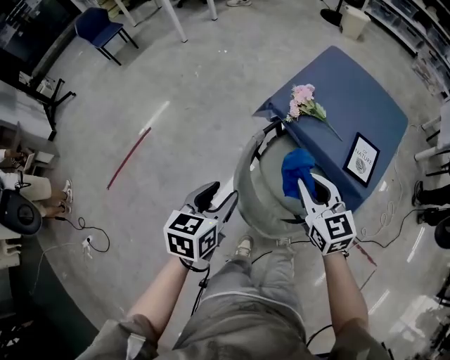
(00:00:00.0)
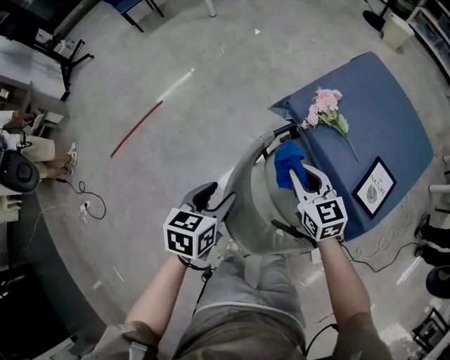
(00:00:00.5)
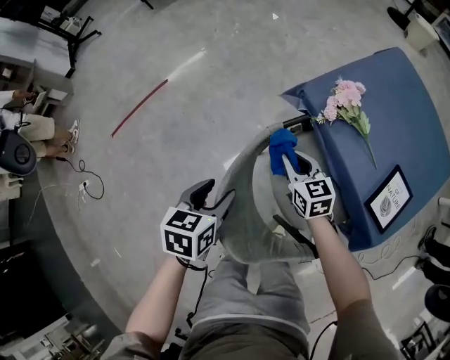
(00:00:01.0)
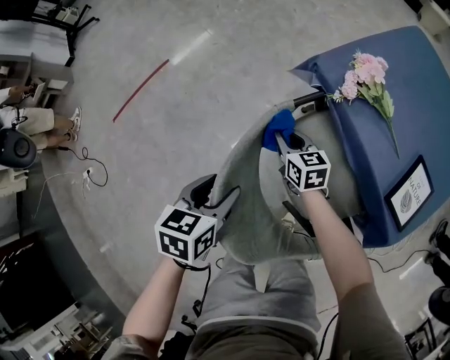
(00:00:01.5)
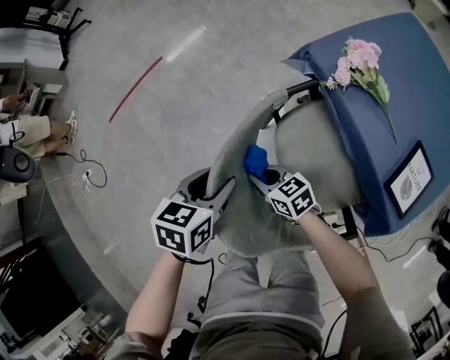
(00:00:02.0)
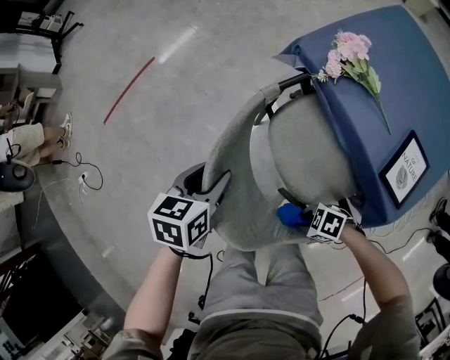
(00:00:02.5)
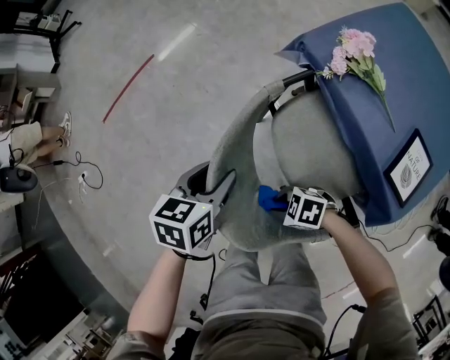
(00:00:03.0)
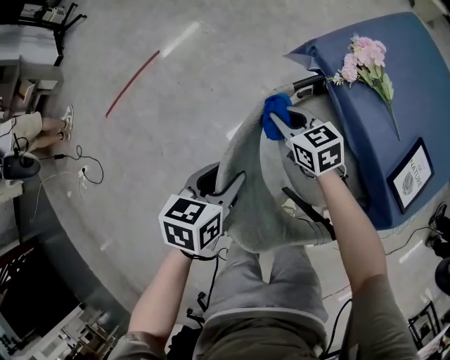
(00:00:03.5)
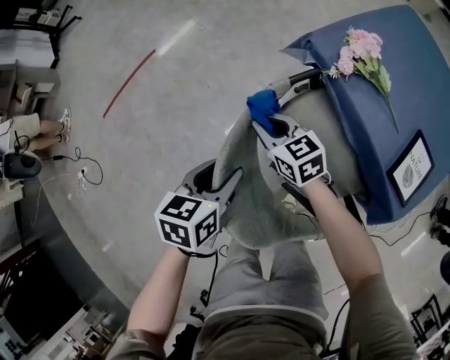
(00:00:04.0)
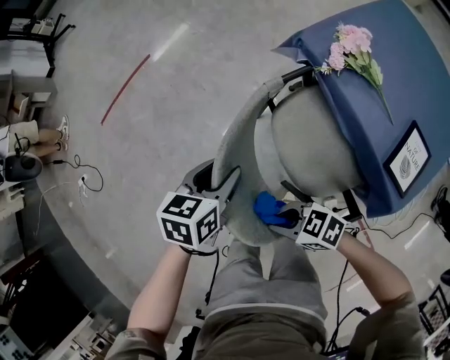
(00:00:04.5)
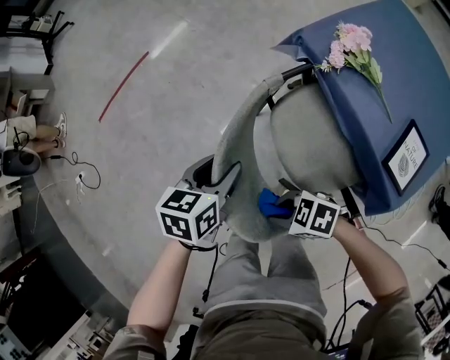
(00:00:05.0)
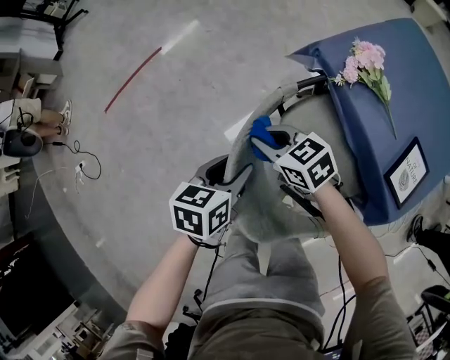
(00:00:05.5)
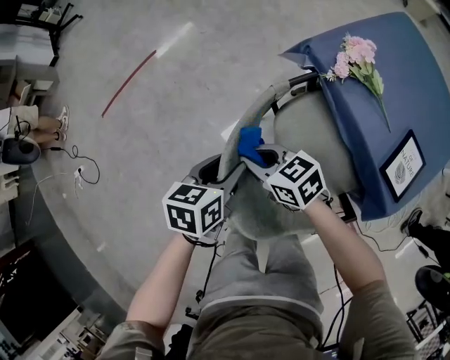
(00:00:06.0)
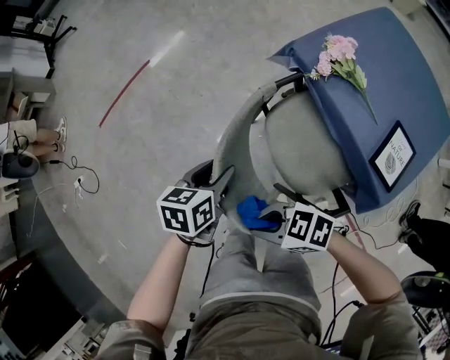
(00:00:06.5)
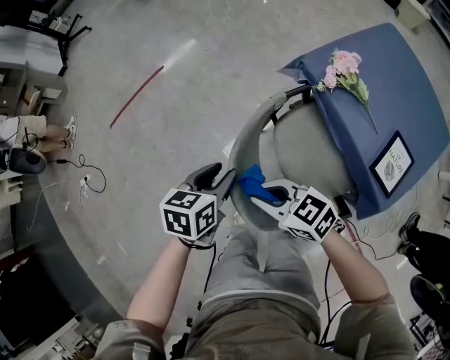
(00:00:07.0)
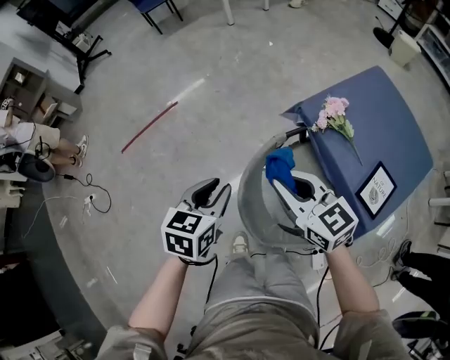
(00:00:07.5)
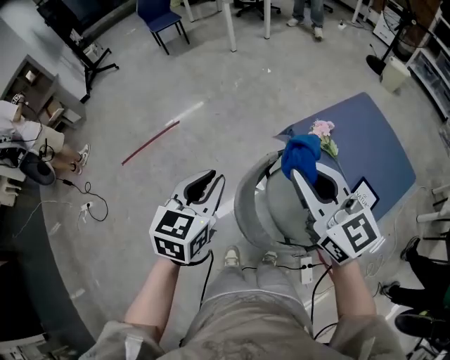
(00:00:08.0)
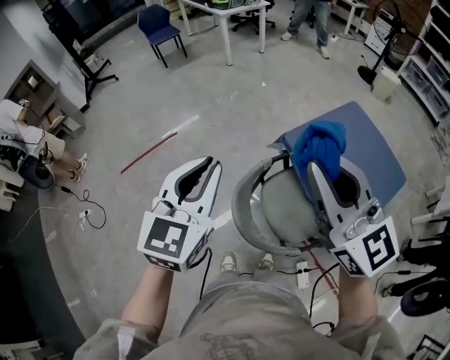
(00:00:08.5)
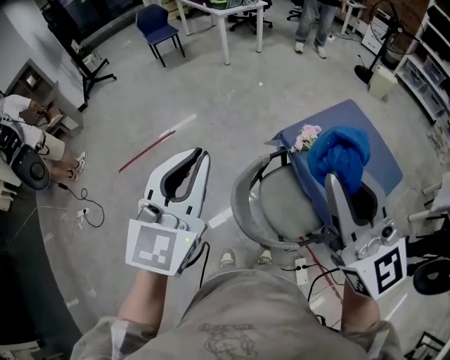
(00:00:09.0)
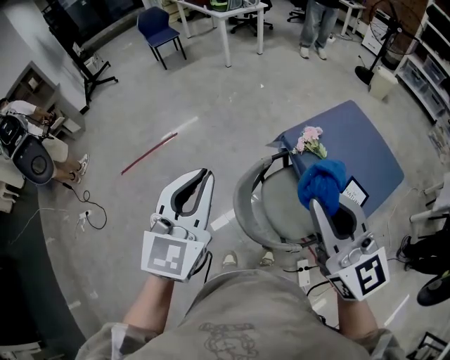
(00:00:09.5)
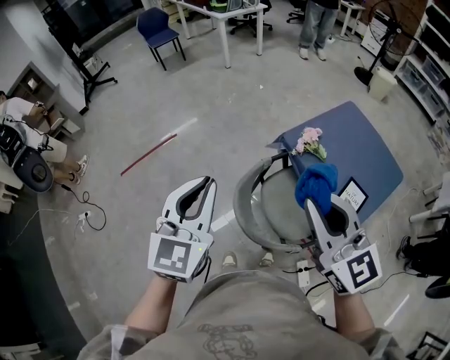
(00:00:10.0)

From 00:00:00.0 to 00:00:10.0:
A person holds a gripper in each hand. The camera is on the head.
From 00:00:00.0 to 00:00:02.0: The right gripper heads downward, covering roughly 35 cm, and changes its angle by some 50 degrees. Meanwhile the left gripper shifts roughly 20 cm downward, and rotates roughly 20 degrees.
From 00:00:06.0 to 00:00:08.0: The grippers both shift upward by some 35 cm. The right gripper turns by about 50 degrees, while the left gripper rotates approximately 30 degrees, and closes.
From 00:00:08.0 to 00:00:10.0: The left gripper moves upward and backward, about 15 cm, and turns by some 20 degrees. The right gripper is displaced backward and upward by about 10 cm.

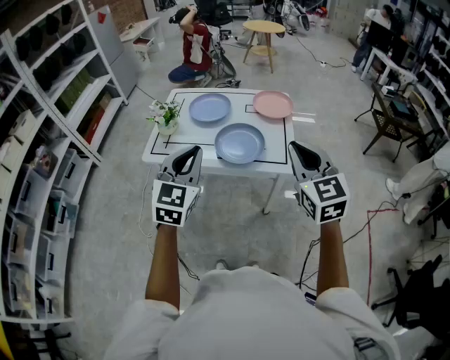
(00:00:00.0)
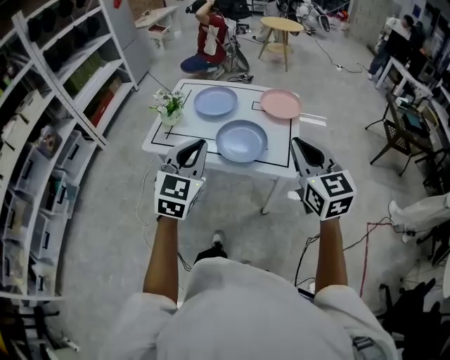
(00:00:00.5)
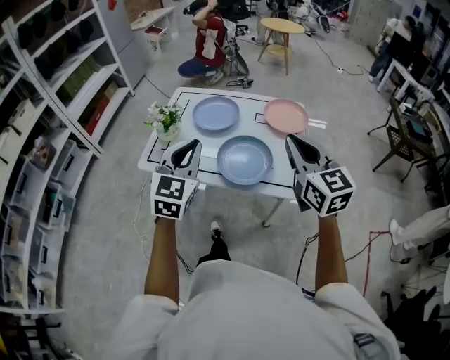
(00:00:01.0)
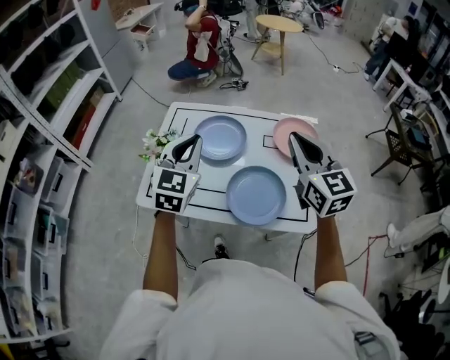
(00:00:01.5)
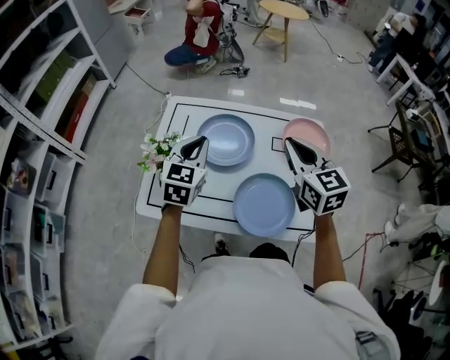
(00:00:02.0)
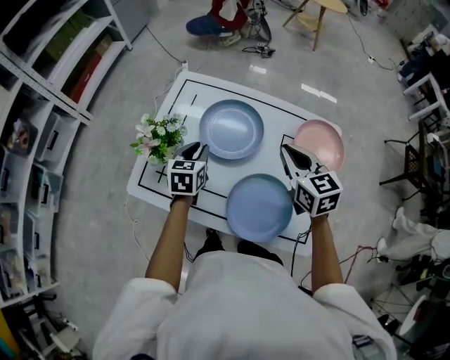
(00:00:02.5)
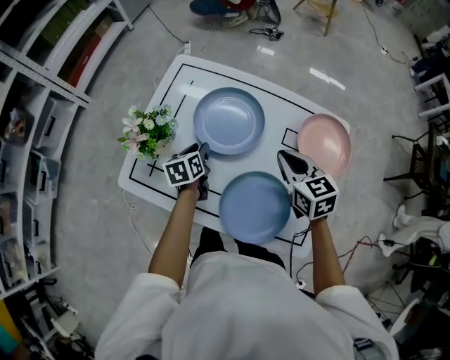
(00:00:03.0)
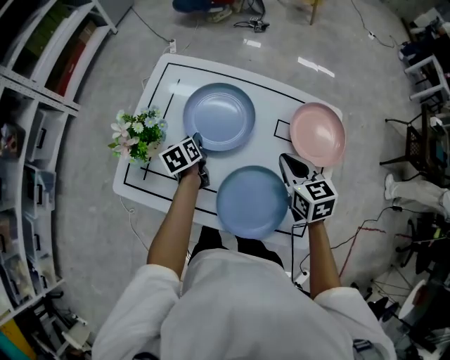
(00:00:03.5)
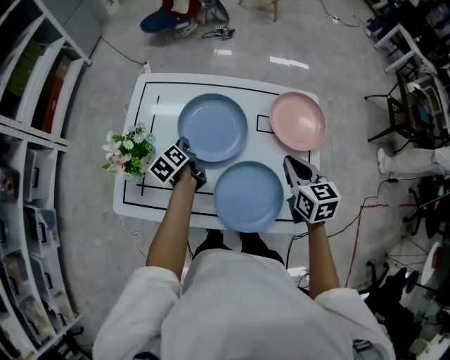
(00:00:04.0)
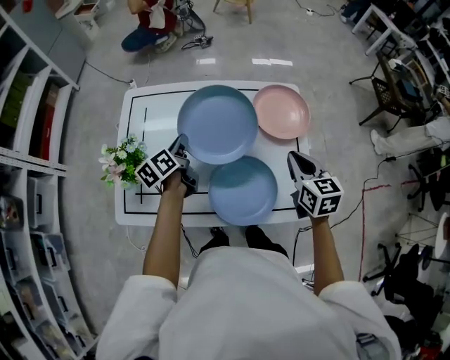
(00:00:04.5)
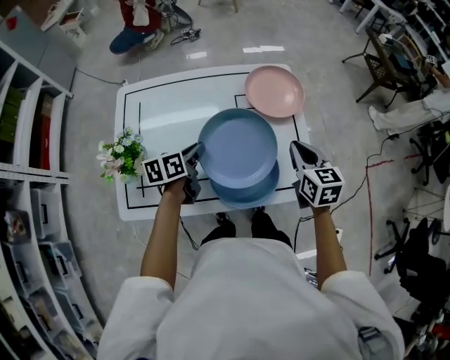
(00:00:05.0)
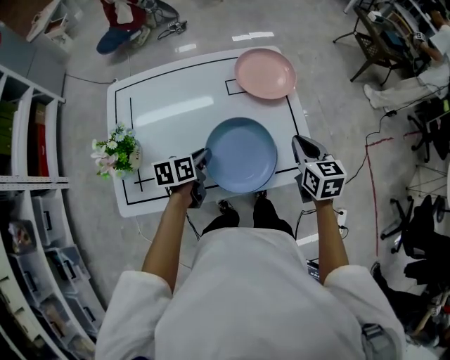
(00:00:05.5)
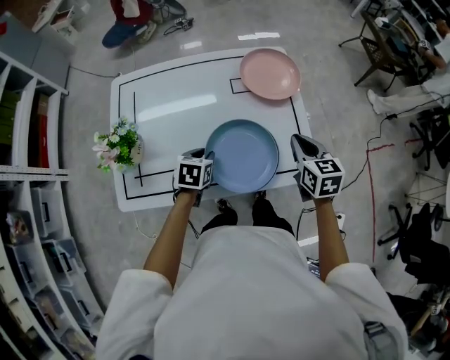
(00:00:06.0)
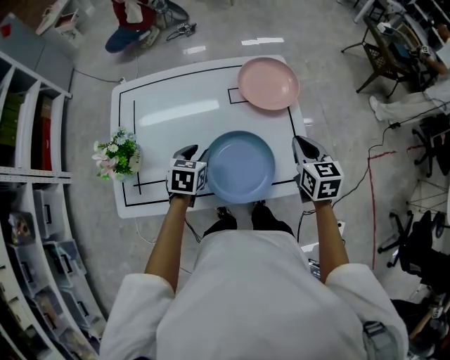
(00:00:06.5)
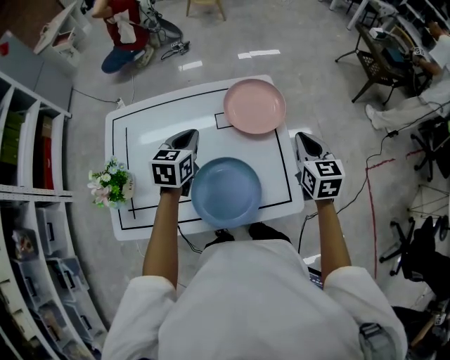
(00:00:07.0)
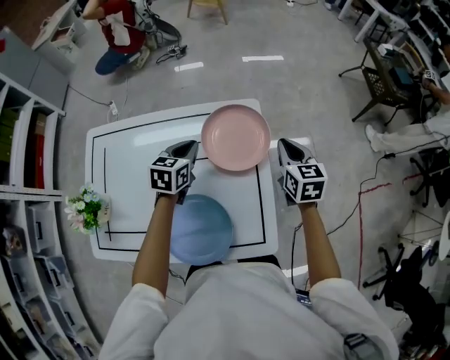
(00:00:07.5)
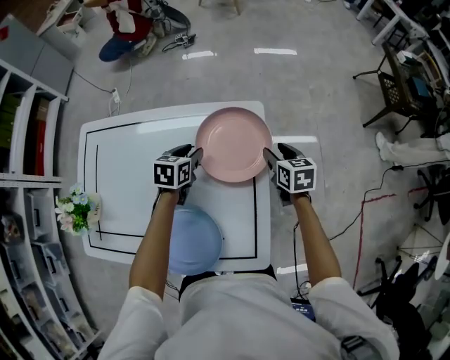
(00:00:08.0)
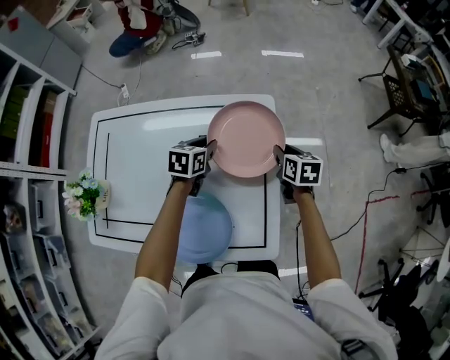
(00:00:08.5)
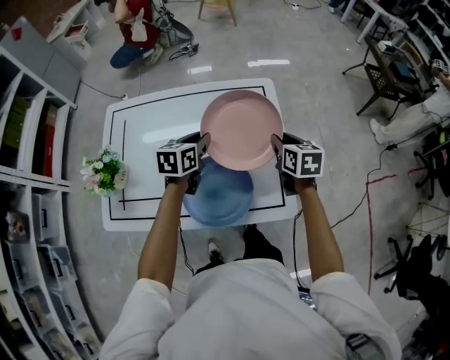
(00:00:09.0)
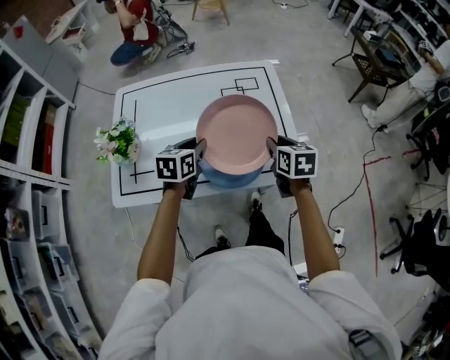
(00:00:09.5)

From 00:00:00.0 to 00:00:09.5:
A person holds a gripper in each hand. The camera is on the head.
From 00:00:00.0 to 00:00:02.0: The two grippers travel together, forward, about 40 cm.
From 00:00:02.0 to 00:00:04.0: The left gripper shifts about 25 cm downward, rotates around the line of its fingers by some 70 degrees, counterclockwise from behind, and opens and closes again; the right gripper shifts some 20 cm downward and to the right, and rotates about 20 degrees.
From 00:00:04.0 to 00:00:05.5: The right gripper changes place by approximately 15 cm; the left gripper shifts by approximately 20 cm, and rotates approximately 50 degrees.
From 00:00:05.5 to 00:00:07.5: The two grippers go roughly 25 cm forward. The left gripper rotates about 30 degrees, and opens, then closes once more.
From 00:00:07.5 to 00:00:09.5: The right gripper shifts roughly 30 cm backward and to the left, and opens, then closes again; the left gripper travels backward by some 30 cm.

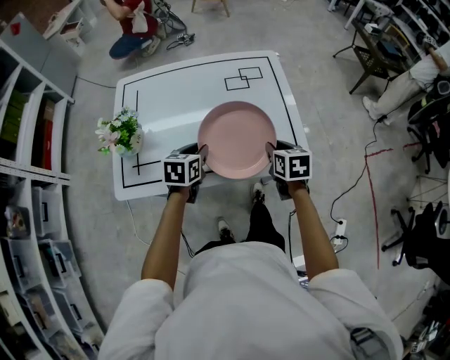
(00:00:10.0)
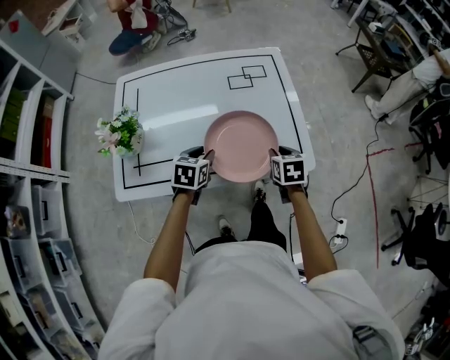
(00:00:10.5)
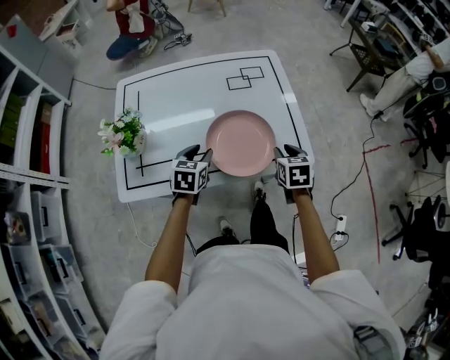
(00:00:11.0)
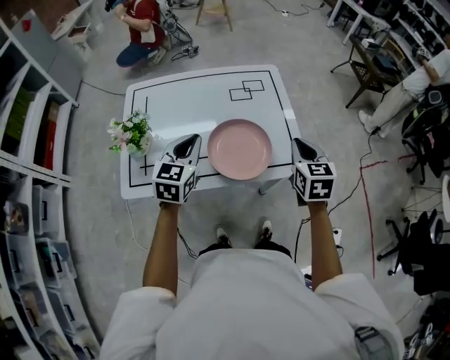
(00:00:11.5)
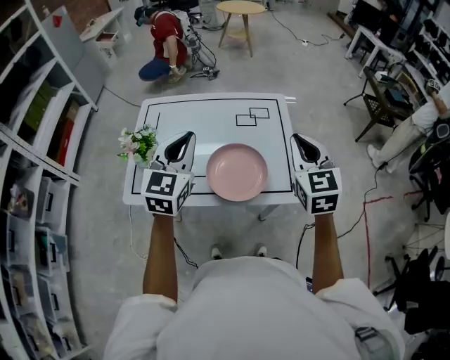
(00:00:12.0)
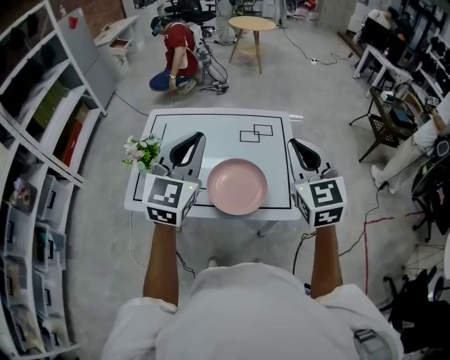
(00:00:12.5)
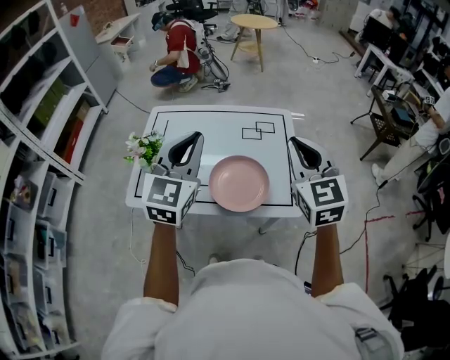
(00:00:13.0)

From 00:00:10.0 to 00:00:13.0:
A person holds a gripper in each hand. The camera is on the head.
From 00:00:10.0 to 00:00:11.5: Both grippers travel together upward, some 15 cm. The left gripper rotates some 30 degrees. Meanwhile the right gripper swivels approximately 20 degrees.
From 00:00:11.5 to 00:00:13.0: The two grippers go some 20 cm upward. The left gripper swivels roughly 20 degrees. The right gripper swivels some 30 degrees.

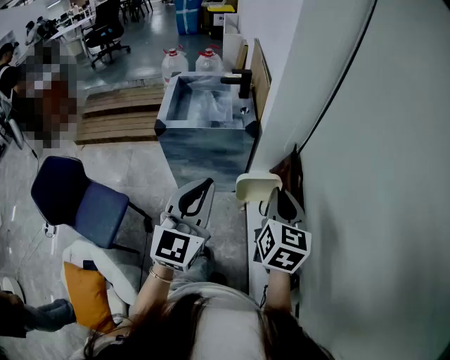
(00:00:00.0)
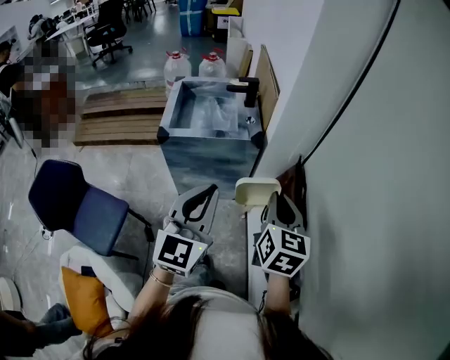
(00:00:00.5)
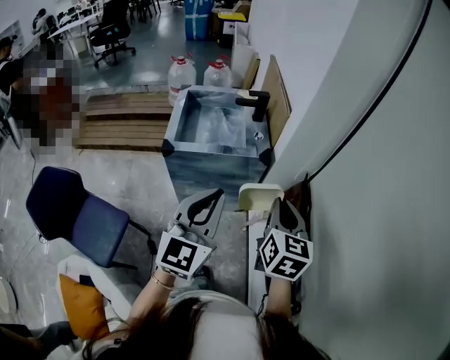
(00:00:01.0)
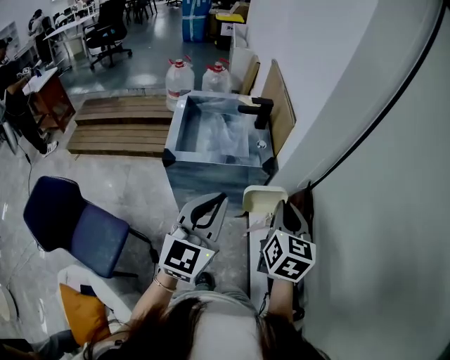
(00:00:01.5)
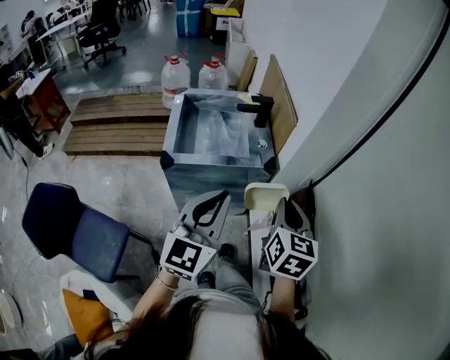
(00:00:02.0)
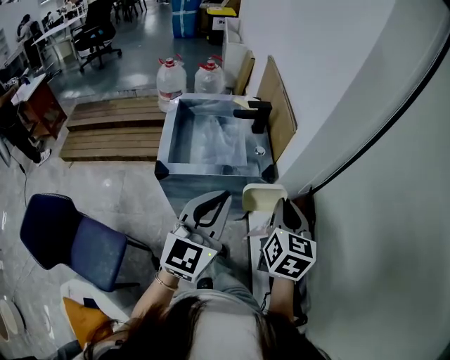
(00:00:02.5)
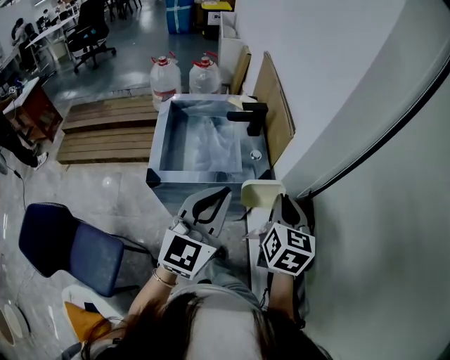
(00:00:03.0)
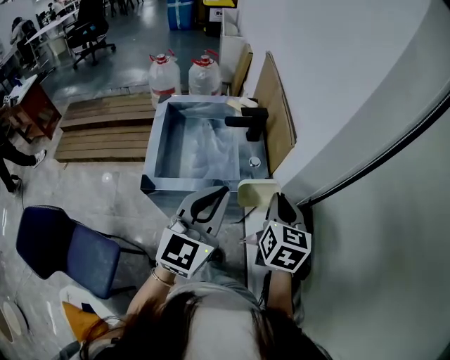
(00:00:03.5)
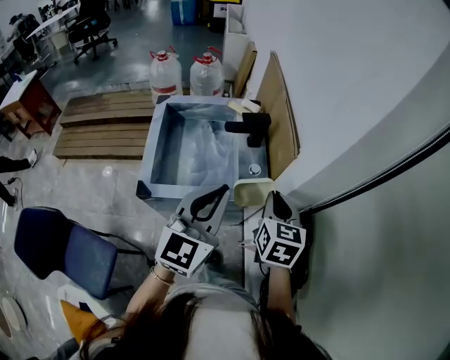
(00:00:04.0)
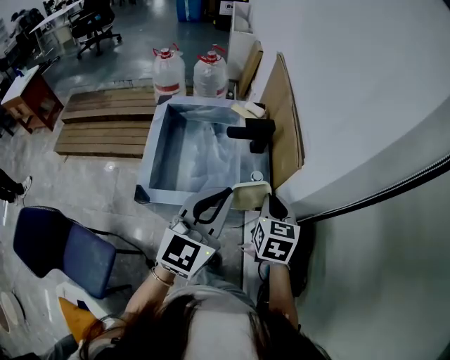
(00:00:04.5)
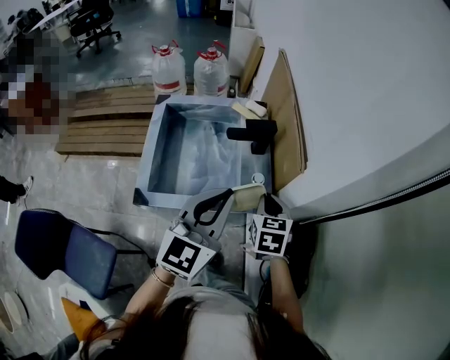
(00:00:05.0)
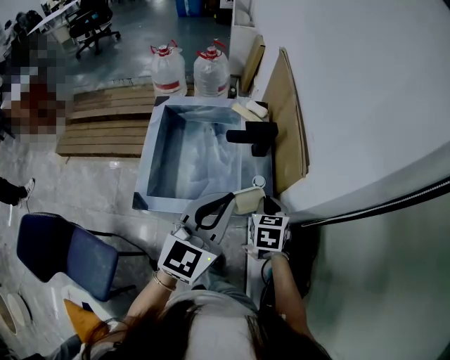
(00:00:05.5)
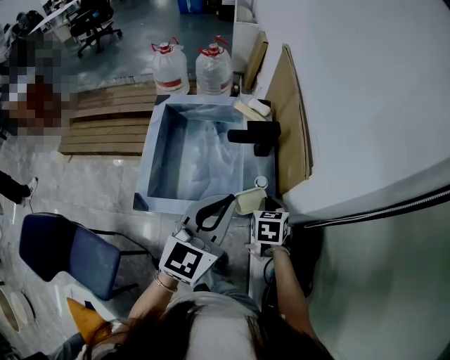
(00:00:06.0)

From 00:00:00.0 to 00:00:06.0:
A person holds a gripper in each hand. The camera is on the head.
From 00:00:00.0 to 00:00:02.0: The two grippers go some 20 cm forward and to the left.
From 00:00:02.0 to 00:00:04.0: The two grippers go some 20 cm forward.
From 00:00:04.0 to 00:00:06.0: The right gripper heads downward and forward, covering some 20 cm, and turns by roughly 30 degrees, while the left gripper heads forward, covering some 5 cm.
